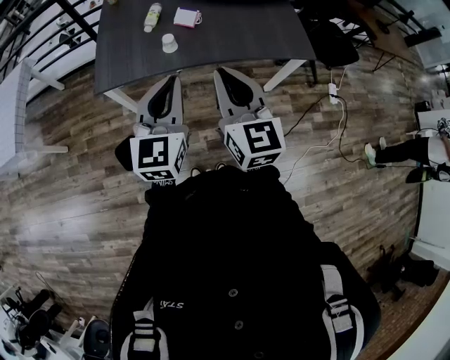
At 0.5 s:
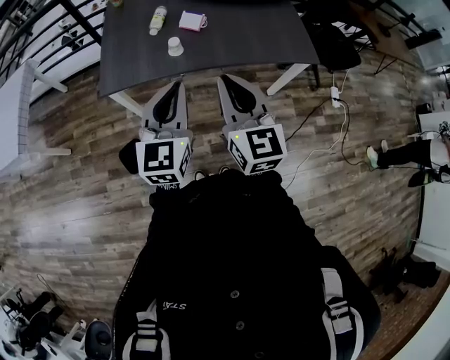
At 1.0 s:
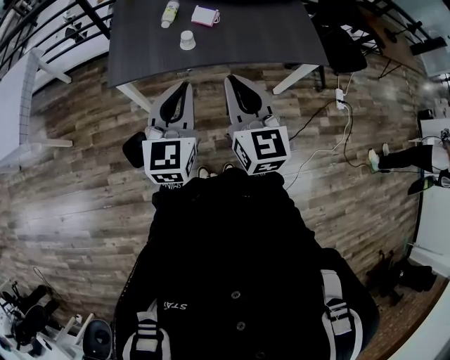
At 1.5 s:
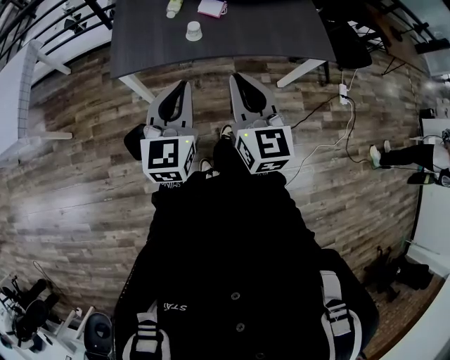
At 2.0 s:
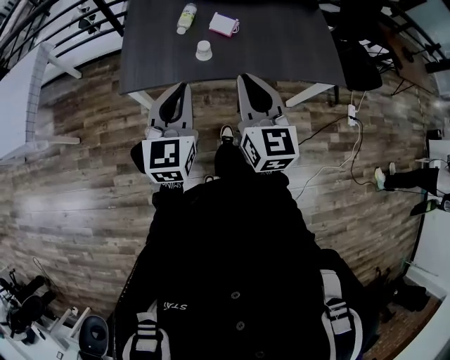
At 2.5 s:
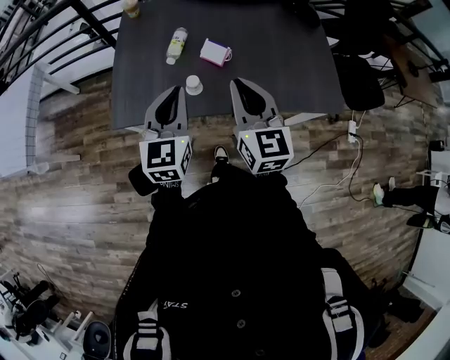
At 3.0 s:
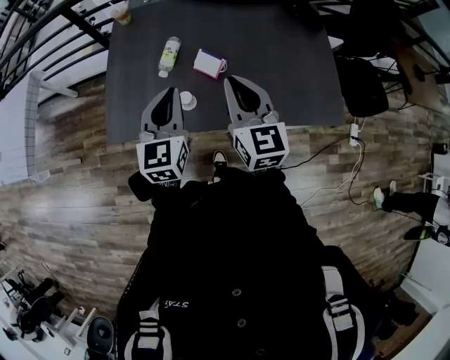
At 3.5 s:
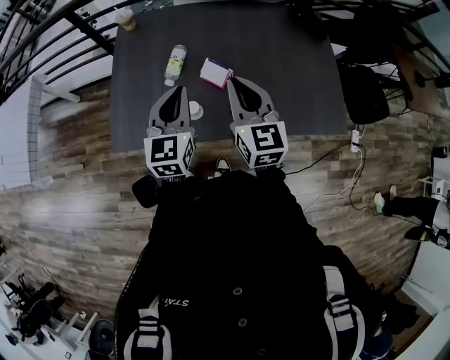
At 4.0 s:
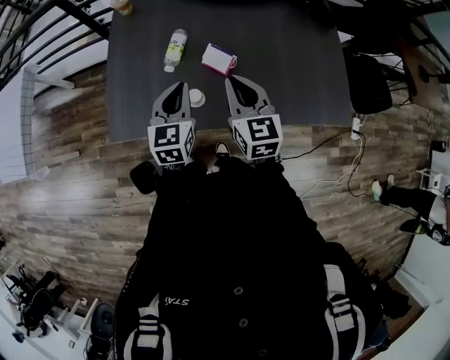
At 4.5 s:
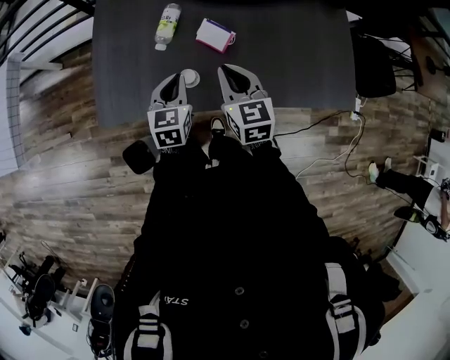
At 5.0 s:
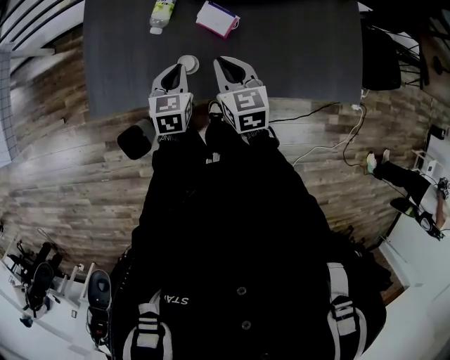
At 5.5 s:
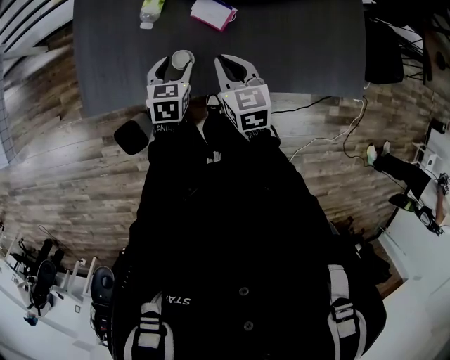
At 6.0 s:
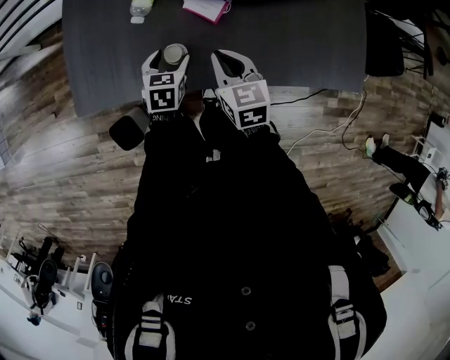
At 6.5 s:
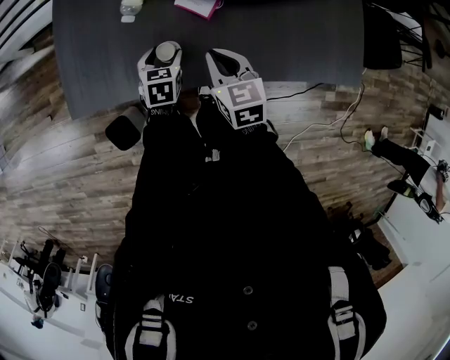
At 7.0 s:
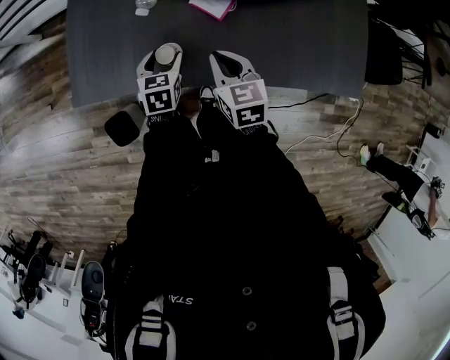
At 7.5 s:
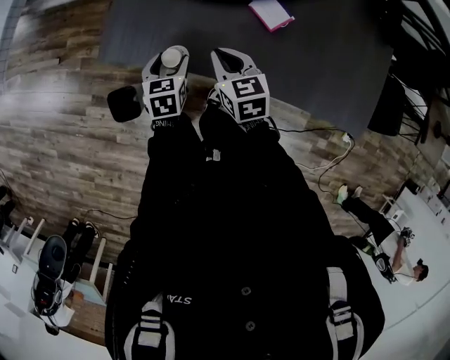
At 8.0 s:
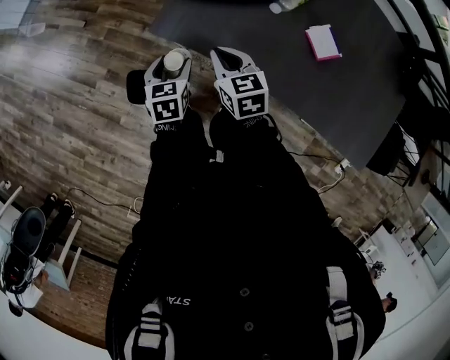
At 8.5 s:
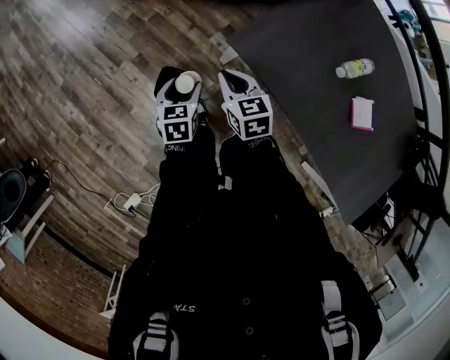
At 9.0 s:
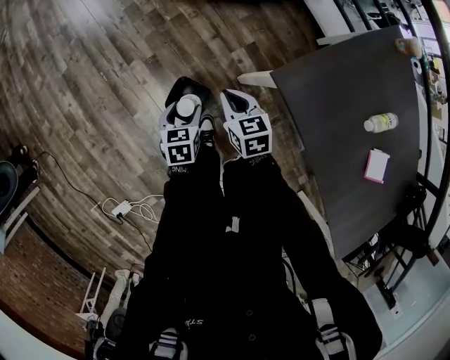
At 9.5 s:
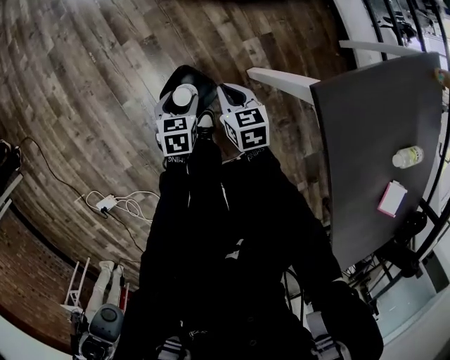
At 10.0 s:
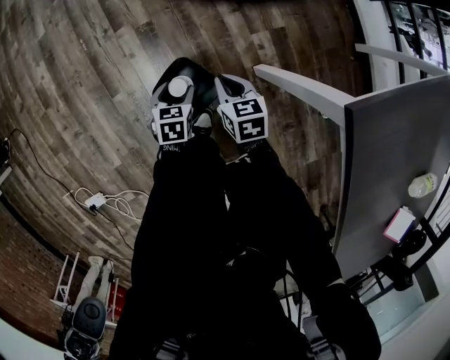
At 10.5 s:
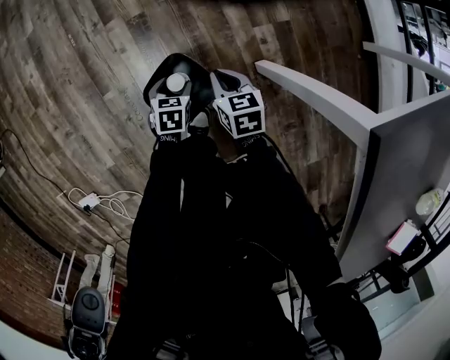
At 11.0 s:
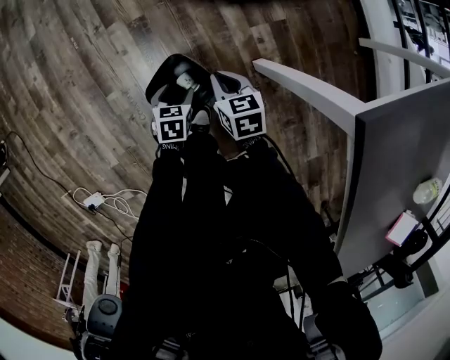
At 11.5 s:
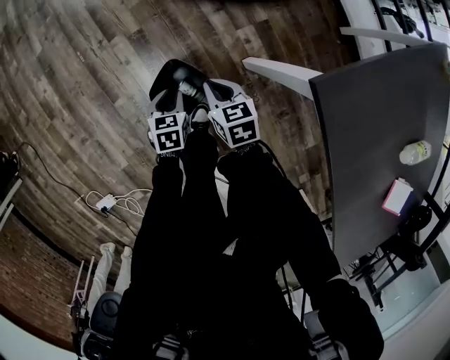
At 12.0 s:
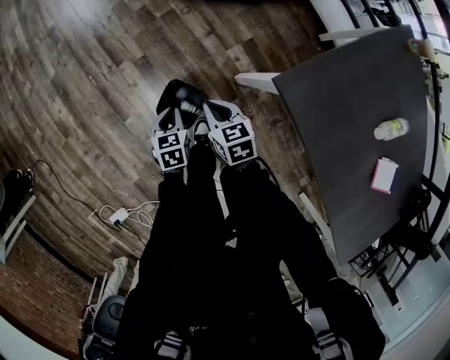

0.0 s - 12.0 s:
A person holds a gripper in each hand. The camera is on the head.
0.0 s - 2.0 s: The right gripper shifts some 10 cm forward and to the left, while the left gripper goes approximately 10 cm to the left and forward.
2.0 s - 4.0 s: The grippers both shift forward by roughly 30 cm.
4.0 s - 6.0 s: Both grippers travel together downward, approximately 20 cm. The left gripper changes its angle by approximately 30 degrees, and opens up, while the right gripper turns by roughly 20 degrees.
6.0 s - 8.0 s: The left gripper changes place by about 35 cm, and changes its angle by about 40 degrees. Meanwhile the right gripper ends up roughly 30 cm from where it was, and swivels some 30 degrees.
8.0 s - 10.0 s: The two grippers go roughly 40 cm downward. The right gripper swivels about 40 degrees; the left gripper turns by about 40 degrees.
10.0 s - 12.0 s: The two grippers go some 20 cm upward. The left gripper closes up.

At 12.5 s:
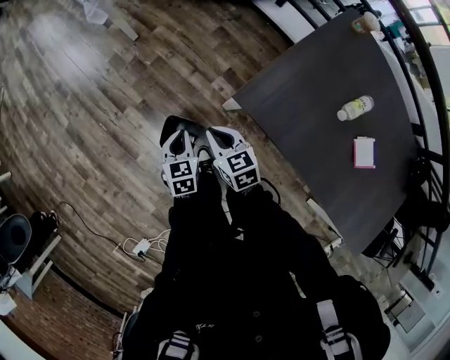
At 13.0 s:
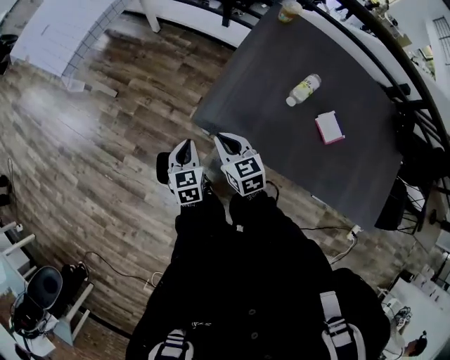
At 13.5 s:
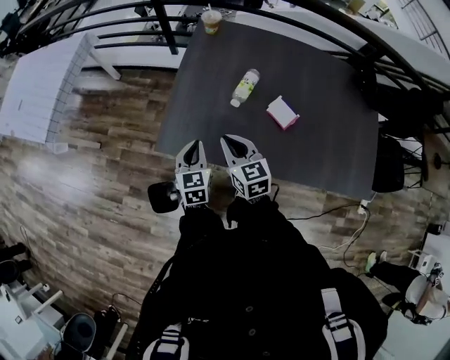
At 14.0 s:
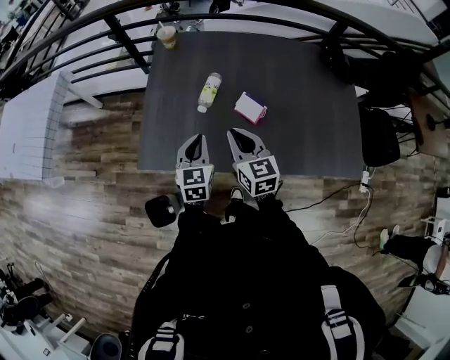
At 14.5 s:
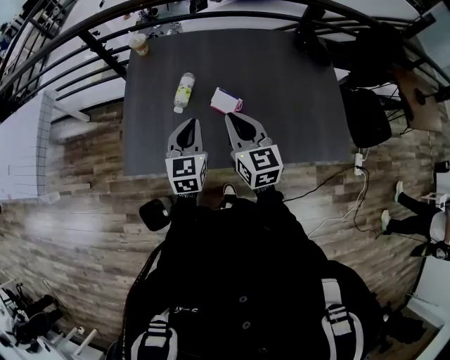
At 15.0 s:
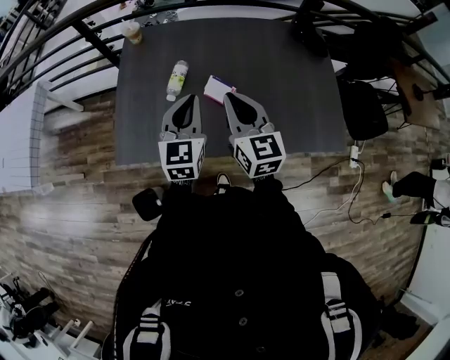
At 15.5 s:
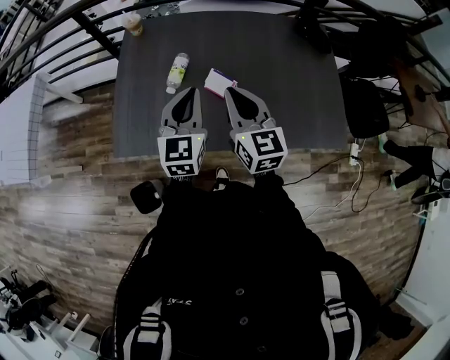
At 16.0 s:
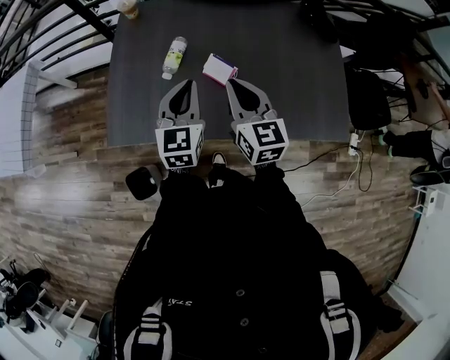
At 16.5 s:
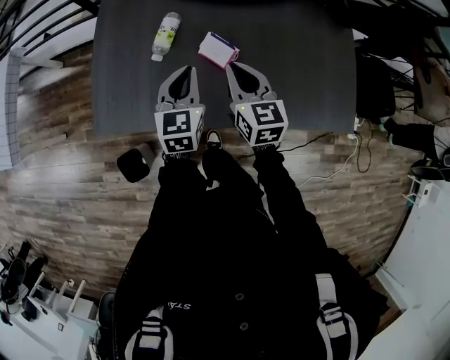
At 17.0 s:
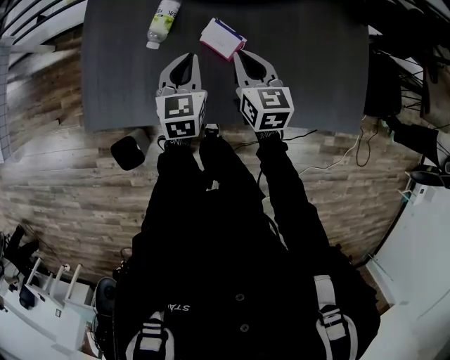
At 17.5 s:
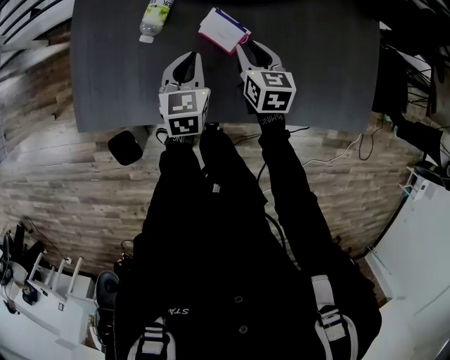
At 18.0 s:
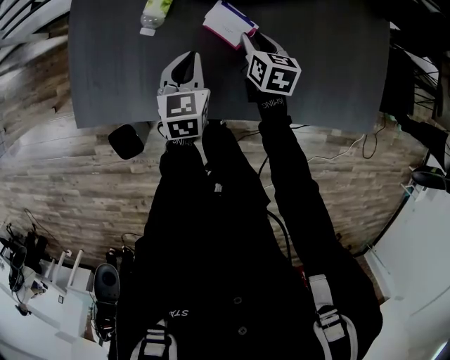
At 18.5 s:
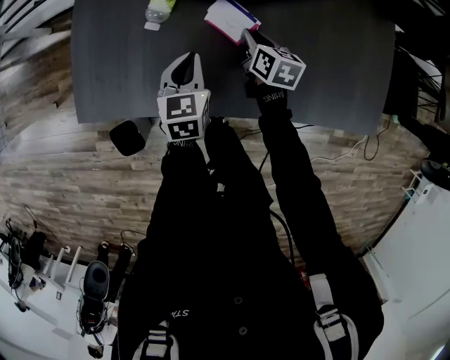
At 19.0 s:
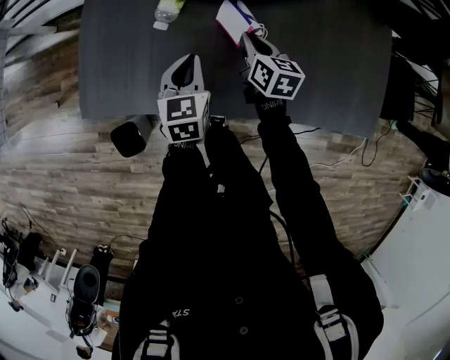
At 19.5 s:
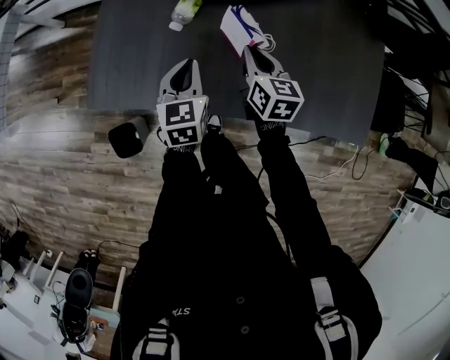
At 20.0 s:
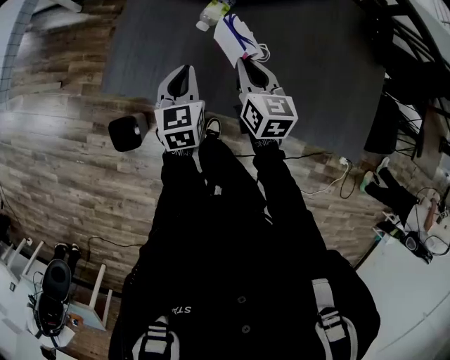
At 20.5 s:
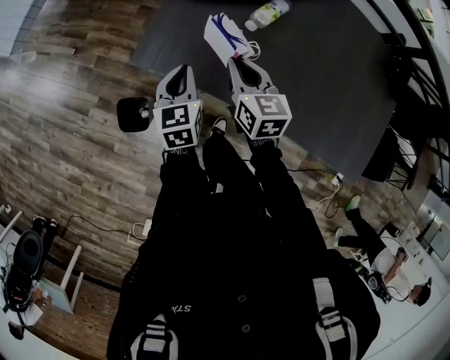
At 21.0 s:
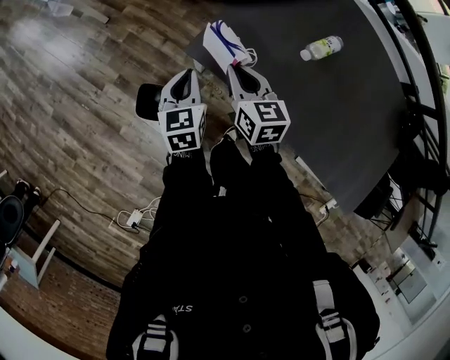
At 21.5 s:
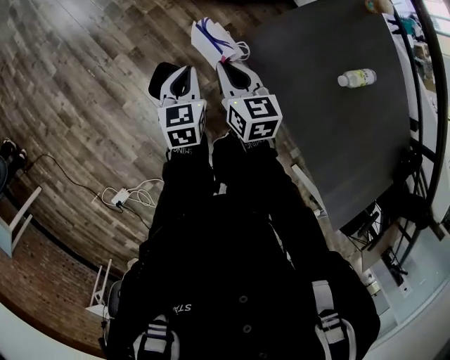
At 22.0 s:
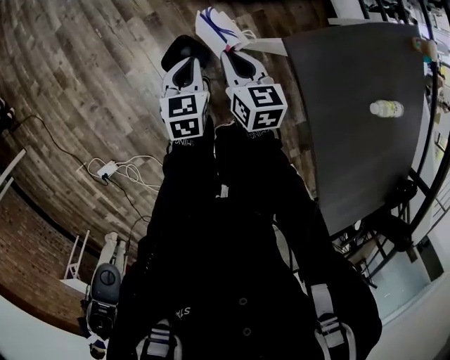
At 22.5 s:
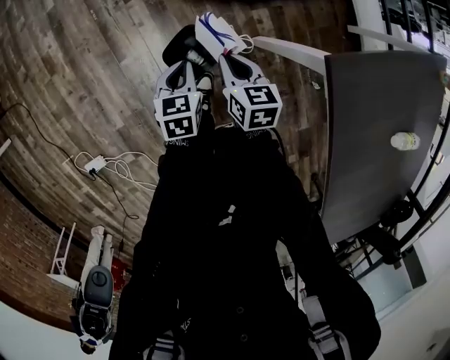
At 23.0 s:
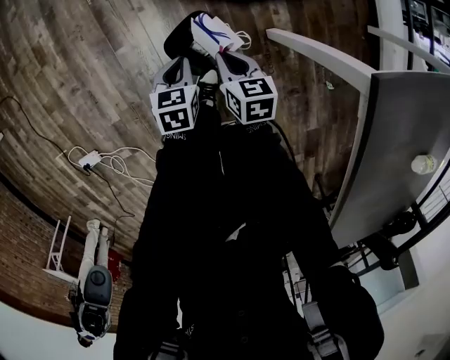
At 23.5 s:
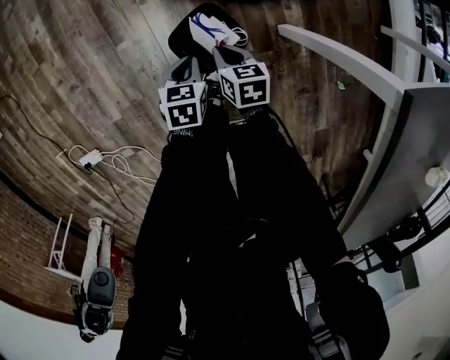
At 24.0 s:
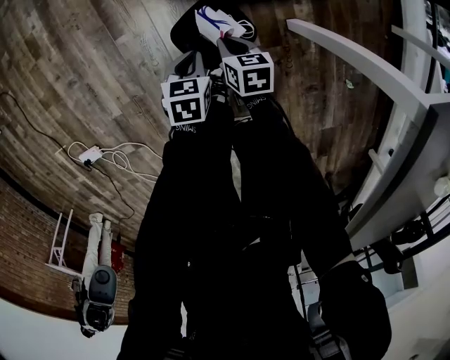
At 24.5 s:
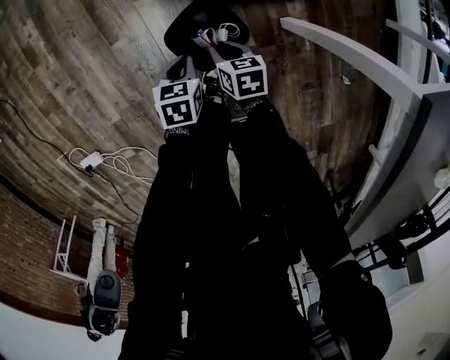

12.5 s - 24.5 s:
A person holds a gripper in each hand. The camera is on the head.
12.5 s - 14.5 s: The pair of grippers is taken approximately 60 cm. The left gripper swivels approximately 60 degrees. The right gripper turns by roughly 60 degrees.
14.5 s - 16.5 s: The two grippers go roughly 10 cm downward and forward.
16.5 s - 18.5 s: The two grippers go approximately 20 cm downward. The right gripper swivels some 30 degrees.
18.5 s - 20.5 s: The left gripper shifts about 25 cm to the left, and swivels some 30 degrees; the right gripper heads to the left and upward, covering roughly 35 cm, and turns by some 40 degrees.
20.5 s - 22.5 s: The two grippers travel together, roughly 50 cm. The right gripper rotates some 50 degrees, while the left gripper swivels some 40 degrees.
22.5 s - 24.5 s: Both grippers move downward, some 25 cm.

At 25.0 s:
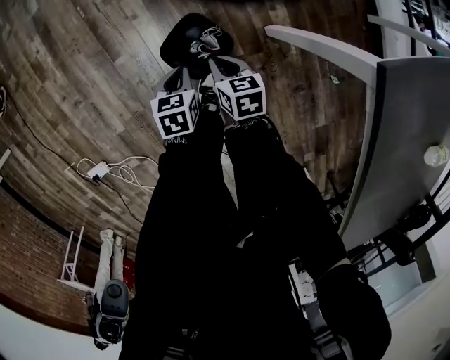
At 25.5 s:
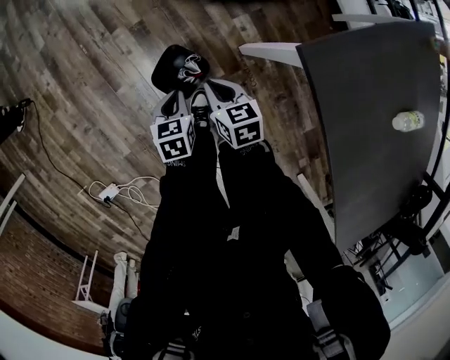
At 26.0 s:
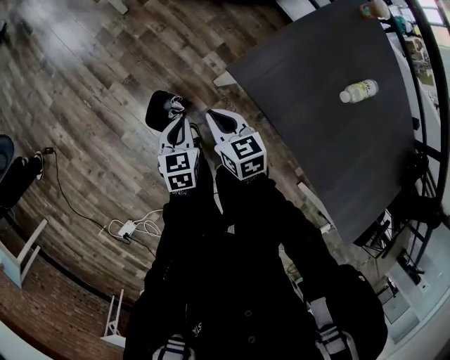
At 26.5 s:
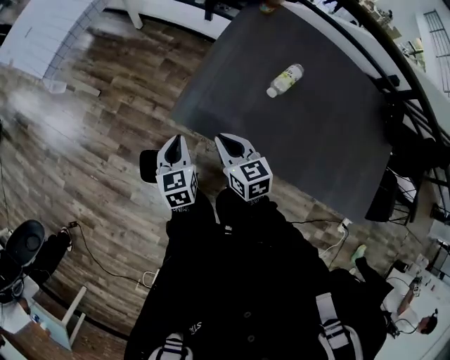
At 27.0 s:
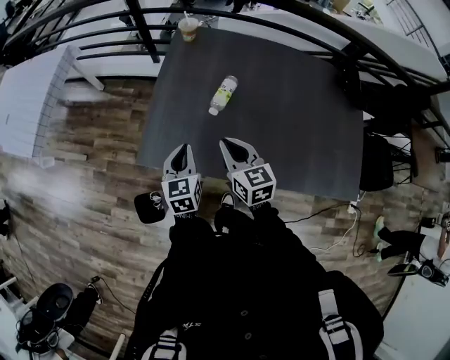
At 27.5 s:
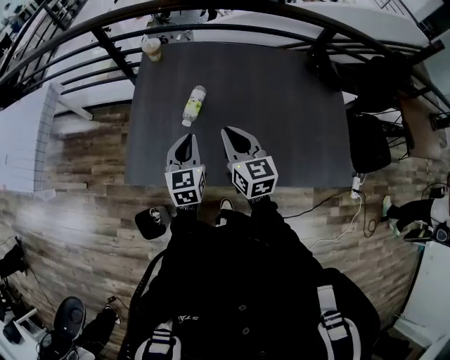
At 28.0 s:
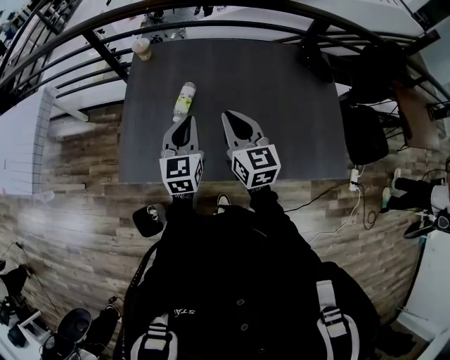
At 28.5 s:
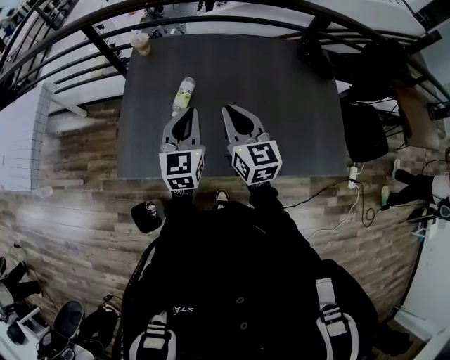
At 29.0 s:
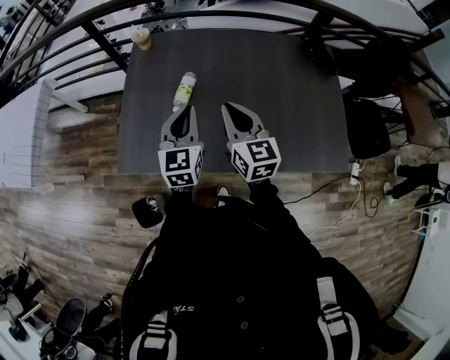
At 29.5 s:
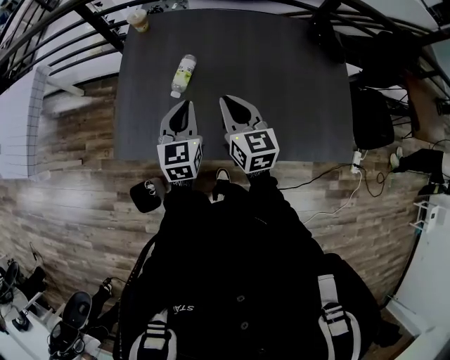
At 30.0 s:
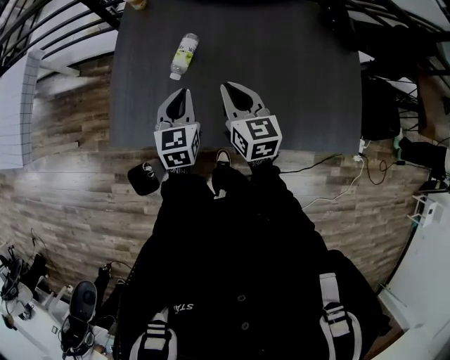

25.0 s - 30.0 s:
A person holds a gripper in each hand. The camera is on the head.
25.0 s - 27.5 s: Both grippers are carried roughly 60 cm. Both grippers travel together upward, roughly 70 cm. The left gripper points its fingers about 40 degrees further upward, while the right gripper tips its fingers upward by approximately 40 degrees.
27.5 s - 30.0 s: The grippers both shift downward by approximately 5 cm.
